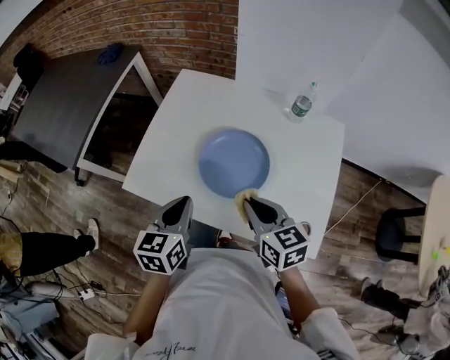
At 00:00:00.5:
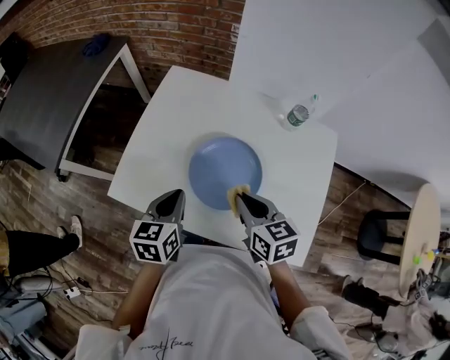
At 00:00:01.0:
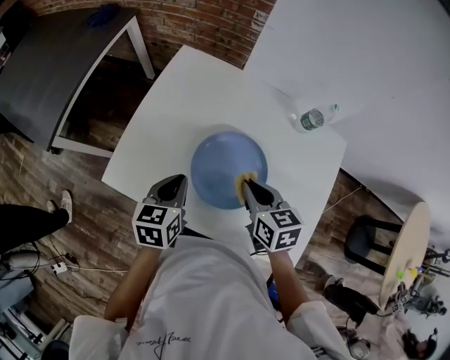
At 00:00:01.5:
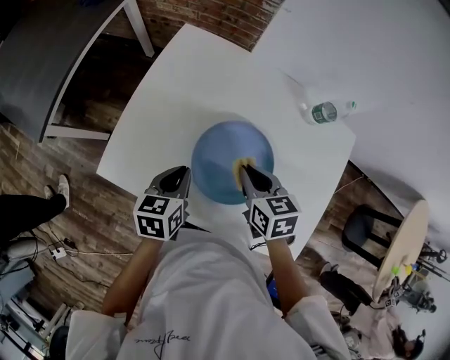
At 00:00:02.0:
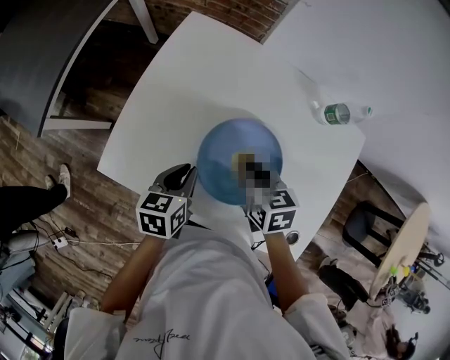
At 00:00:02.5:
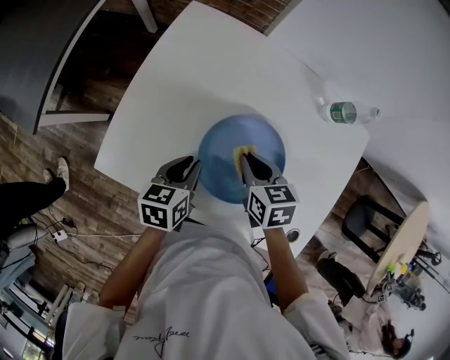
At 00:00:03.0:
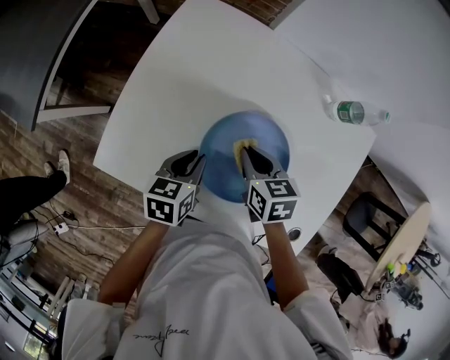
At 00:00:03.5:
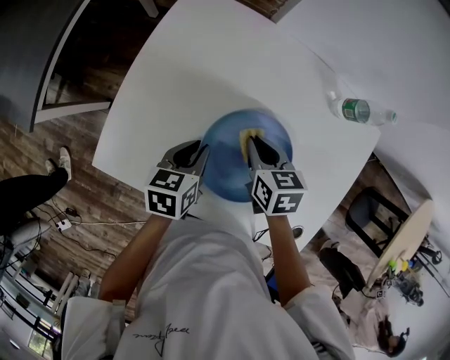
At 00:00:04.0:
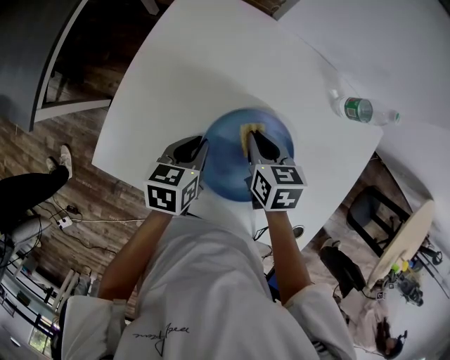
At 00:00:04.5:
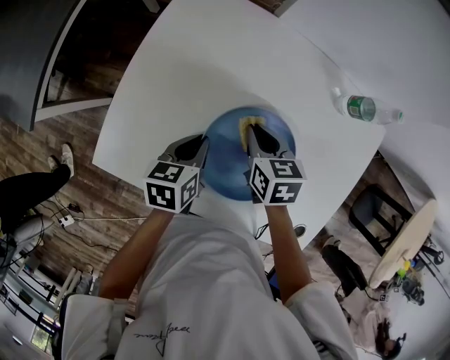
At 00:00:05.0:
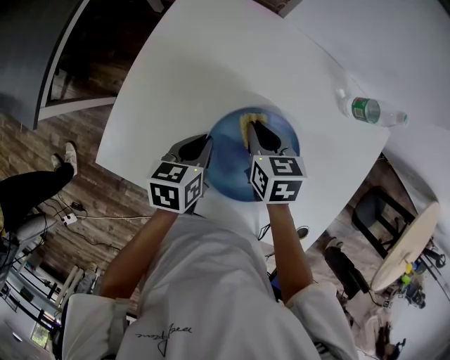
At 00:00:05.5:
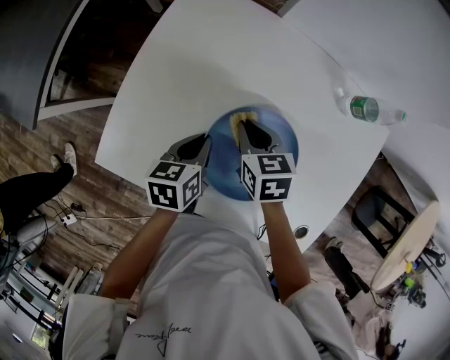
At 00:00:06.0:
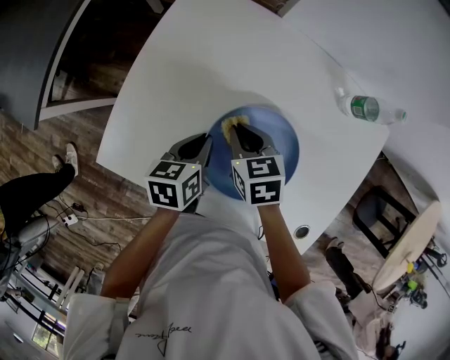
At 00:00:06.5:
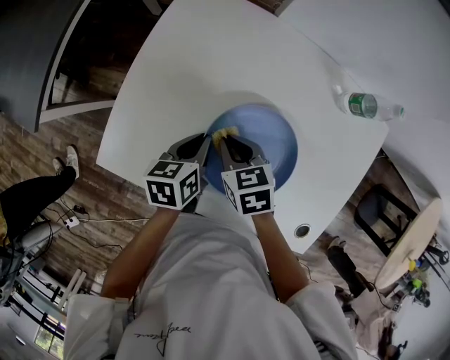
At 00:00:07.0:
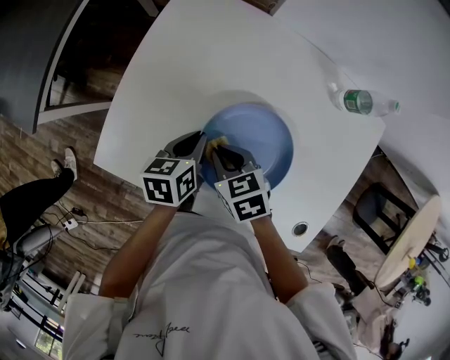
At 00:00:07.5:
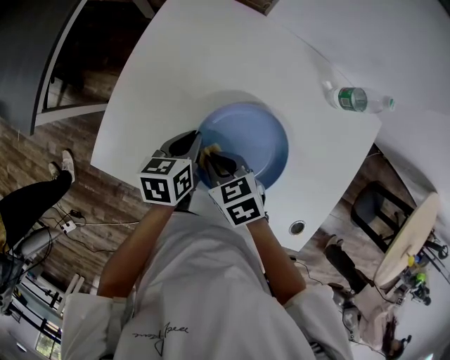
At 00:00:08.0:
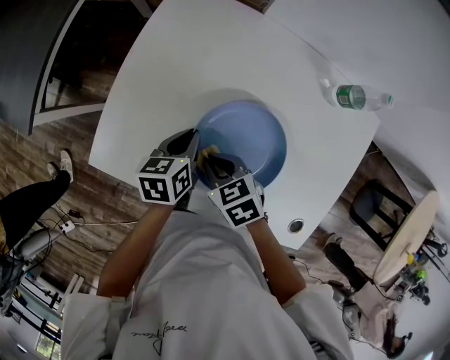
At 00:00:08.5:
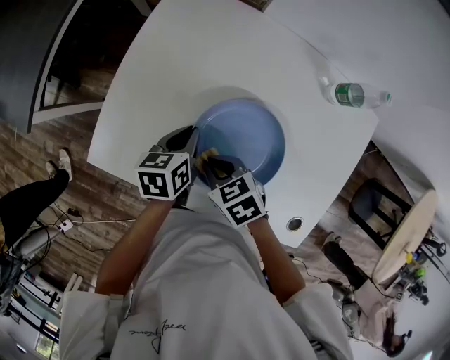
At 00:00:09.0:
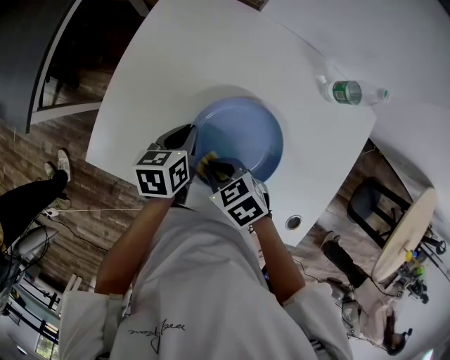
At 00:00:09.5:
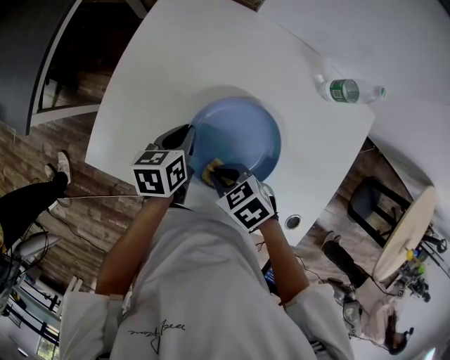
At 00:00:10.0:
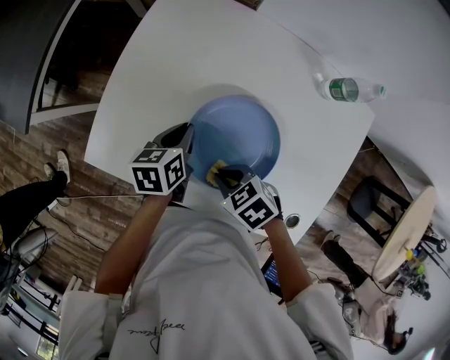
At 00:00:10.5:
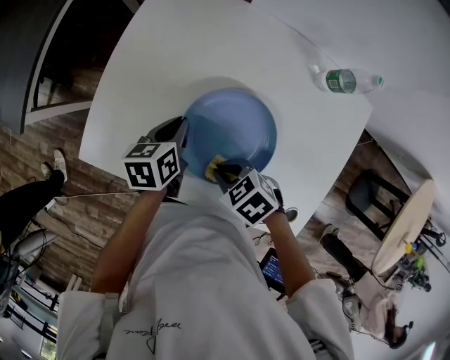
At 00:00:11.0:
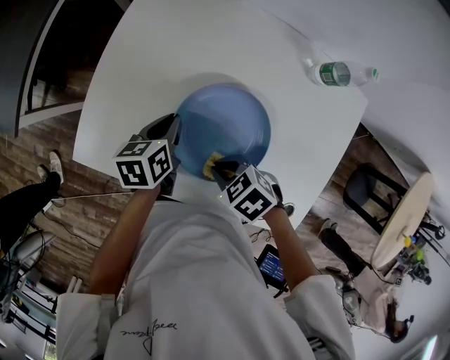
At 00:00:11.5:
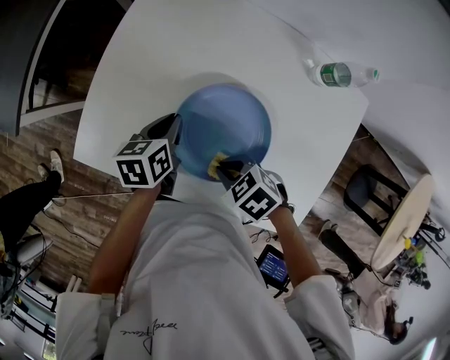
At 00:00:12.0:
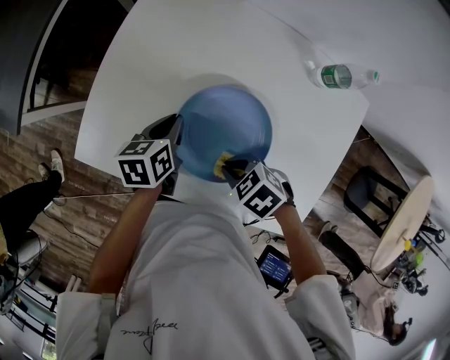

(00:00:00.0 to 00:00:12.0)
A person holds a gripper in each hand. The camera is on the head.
00:00:00.0 - 00:00:02.0: The left gripper goes about 15 cm downward and forward, and rotates roughly 20 degrees; the right gripper goes roughly 20 cm forward and downward.
00:00:02.0 - 00:00:04.0: The grippers both shift forward by about 5 cm.
00:00:04.0 - 00:00:06.0: The right gripper heads to the left, covering approximately 5 cm.
00:00:06.0 - 00:00:08.0: The right gripper shifts some 10 cm backward.
00:00:08.0 - 00:00:10.0: The right gripper shifts about 5 cm backward.
00:00:10.0 - 00:00:12.0: The grippers move only a little.

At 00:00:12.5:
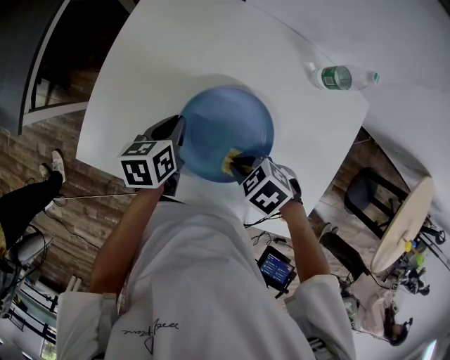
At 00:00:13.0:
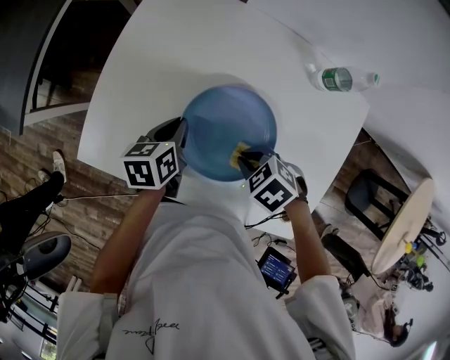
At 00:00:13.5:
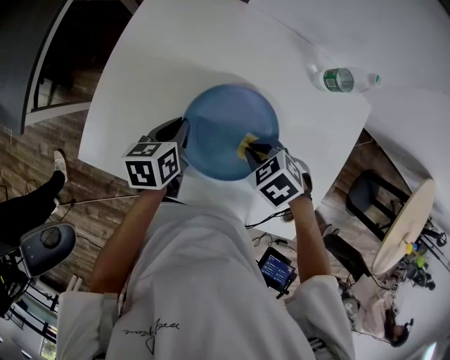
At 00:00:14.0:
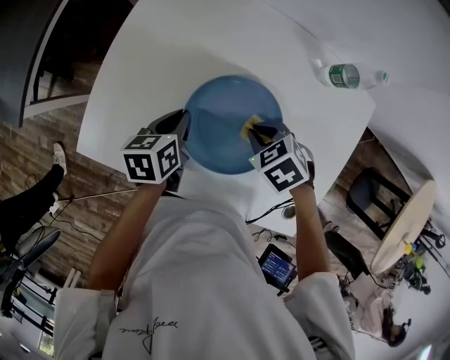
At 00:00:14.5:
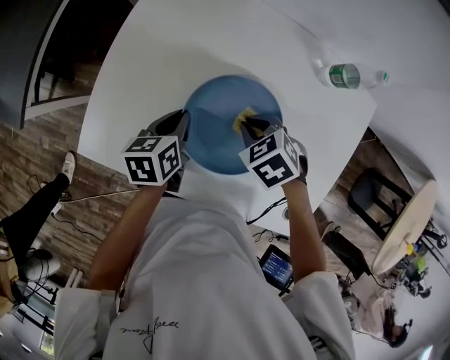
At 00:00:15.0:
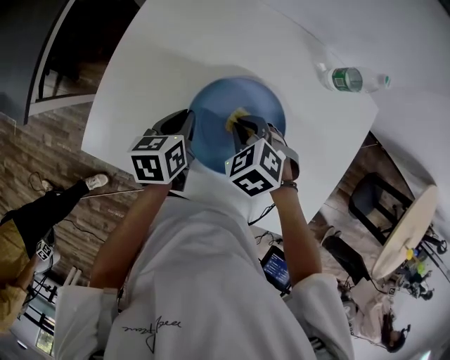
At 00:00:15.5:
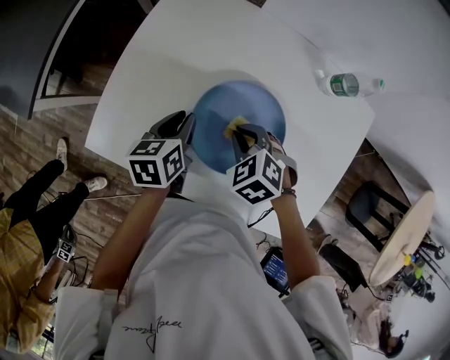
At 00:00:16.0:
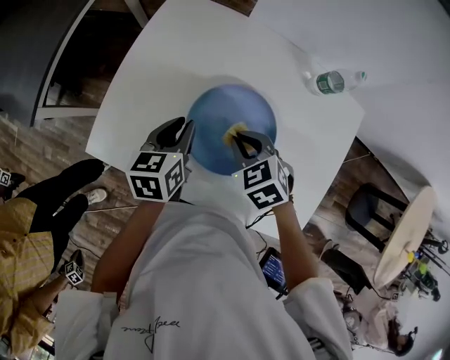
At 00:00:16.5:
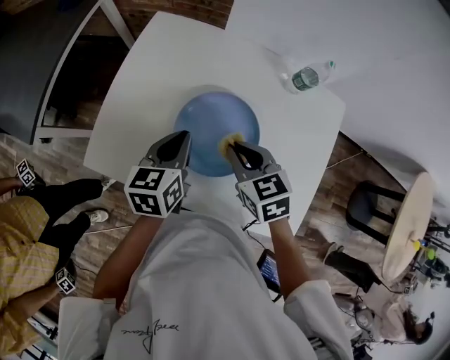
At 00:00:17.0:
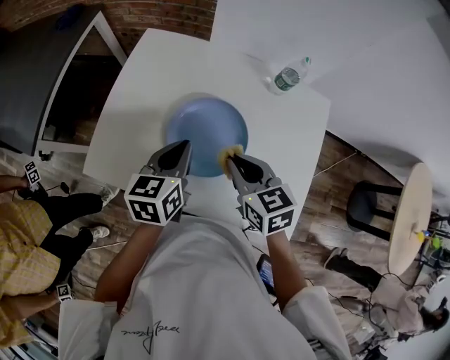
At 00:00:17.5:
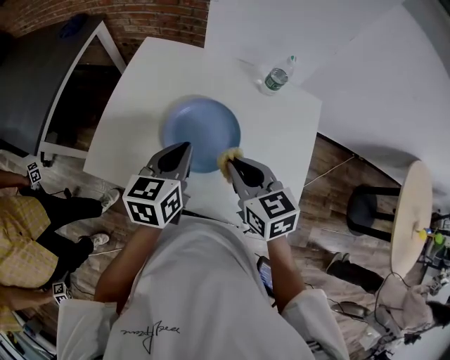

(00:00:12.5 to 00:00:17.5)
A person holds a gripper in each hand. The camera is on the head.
00:00:12.5 - 00:00:15.0: The right gripper moves approximately 10 cm, and changes its angle by some 20 degrees.
00:00:15.0 - 00:00:17.5: Both grippers travel together upward, backward and to the right, about 20 cm. The left gripper rotates about 30 degrees; the right gripper angles its fingers upward, by some 40 degrees.

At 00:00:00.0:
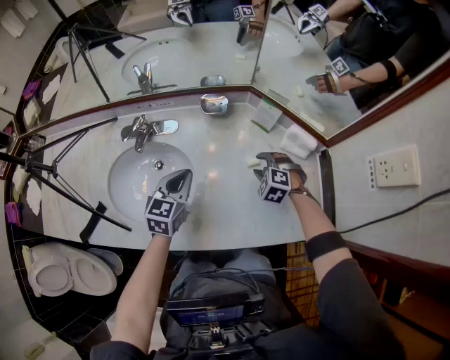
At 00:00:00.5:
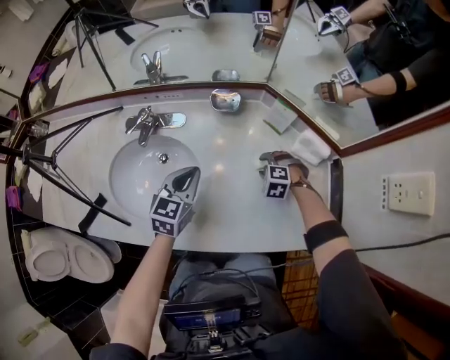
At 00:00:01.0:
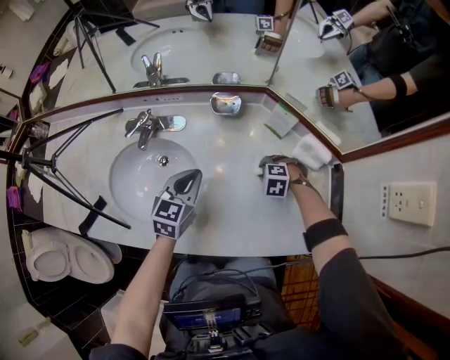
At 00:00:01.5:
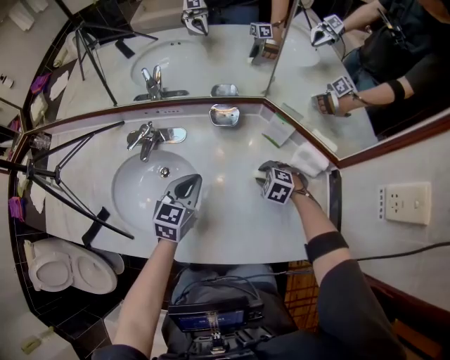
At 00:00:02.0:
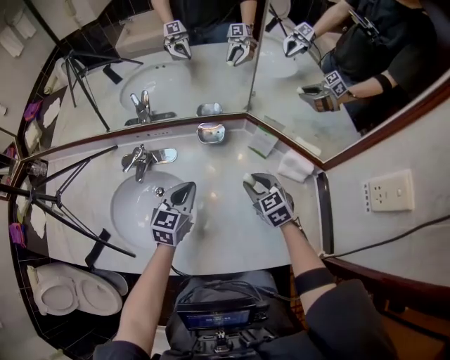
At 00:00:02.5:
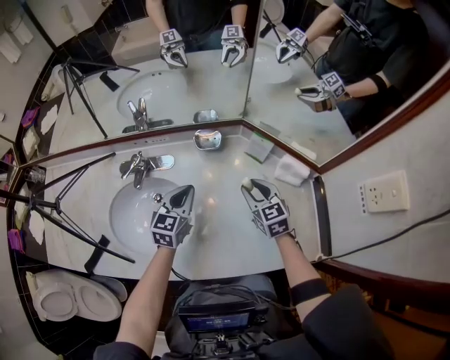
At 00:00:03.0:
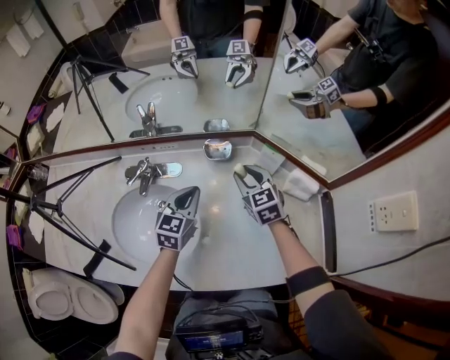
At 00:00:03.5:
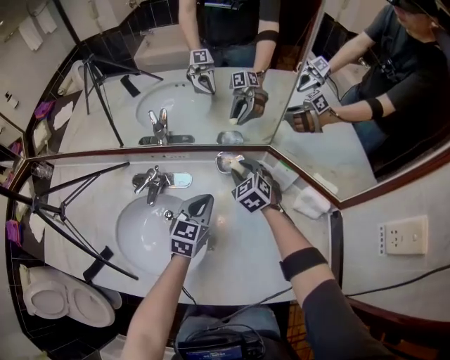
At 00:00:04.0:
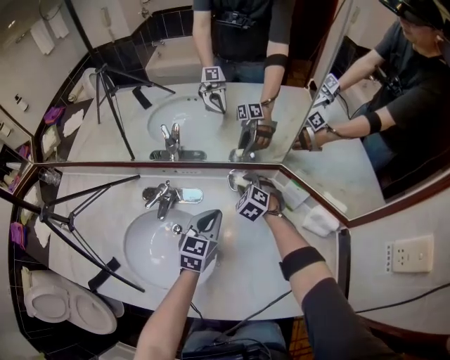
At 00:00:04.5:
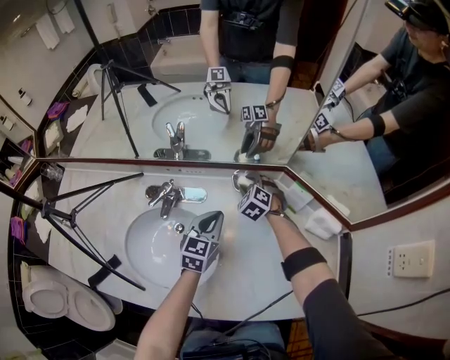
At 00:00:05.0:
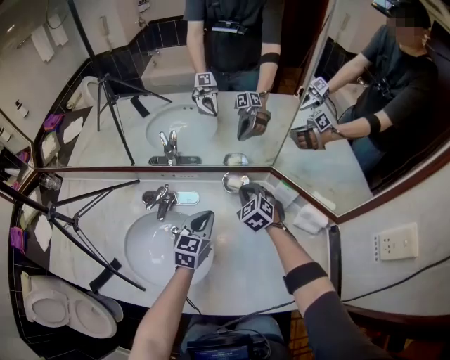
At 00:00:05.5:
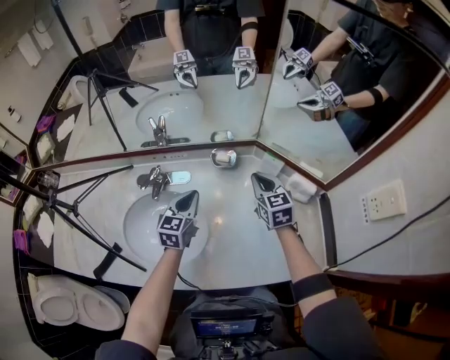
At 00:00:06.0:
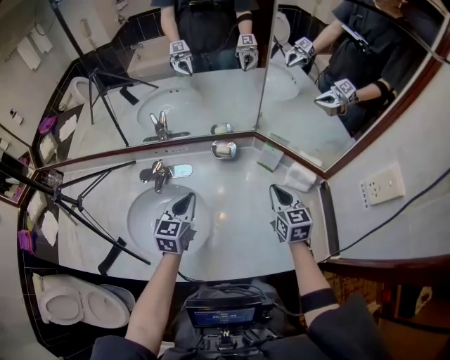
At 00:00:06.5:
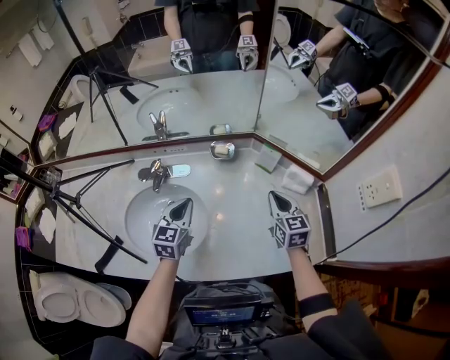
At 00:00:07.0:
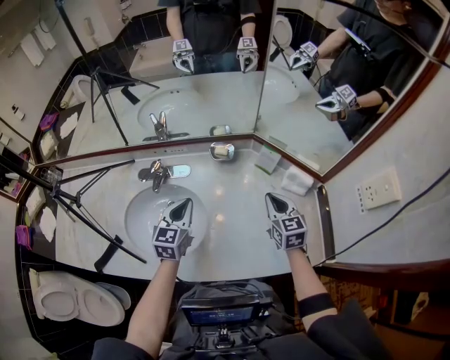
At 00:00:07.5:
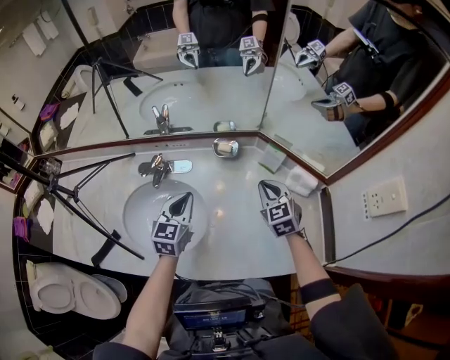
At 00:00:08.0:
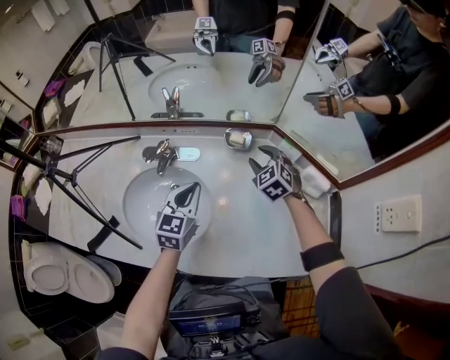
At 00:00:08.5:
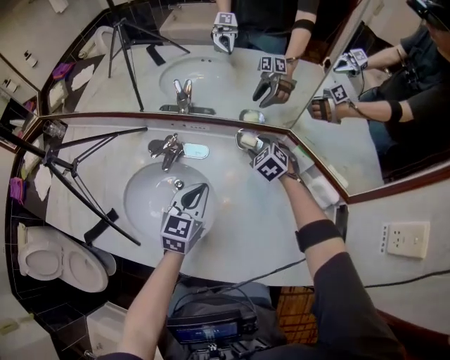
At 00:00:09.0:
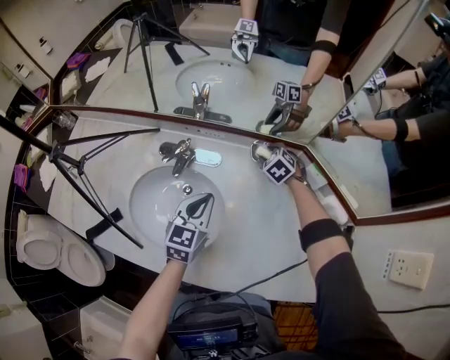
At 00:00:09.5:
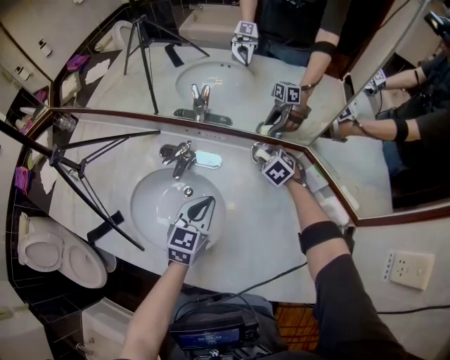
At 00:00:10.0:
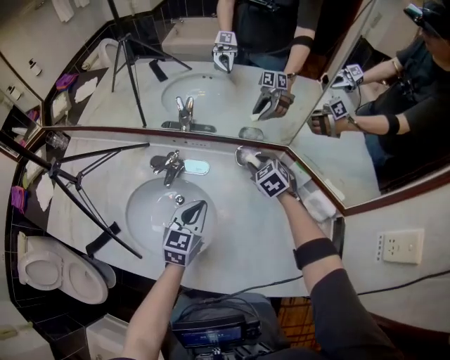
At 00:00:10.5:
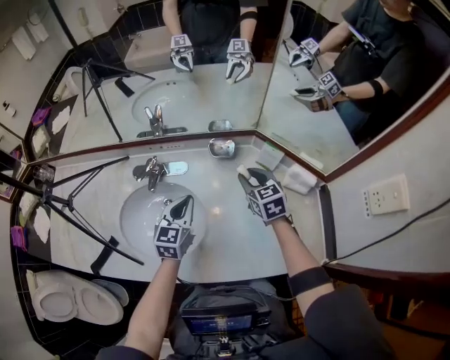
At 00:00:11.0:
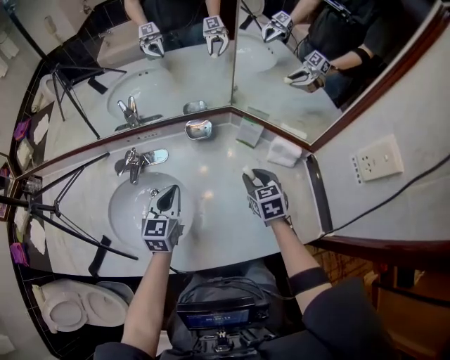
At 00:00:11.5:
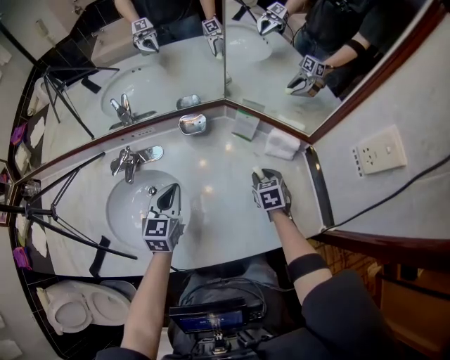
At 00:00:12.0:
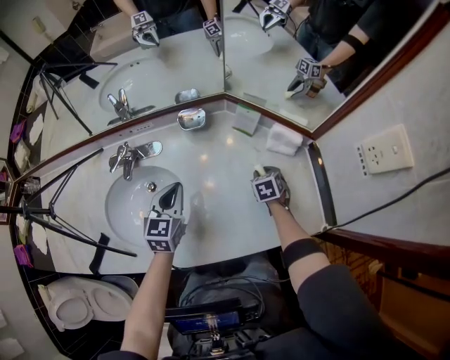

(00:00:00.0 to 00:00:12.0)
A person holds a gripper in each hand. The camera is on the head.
00:00:00.0 - 00:00:02.0: The left gripper ends up roughly 5 cm from where it was, while the right gripper shifts some 10 cm upward, and rotates around the line of its fingers by some 40 degrees, clockwise from behind.
00:00:02.0 - 00:00:04.0: The right gripper shifts approximately 25 cm forward and to the left, and changes its angle by roughly 30 degrees, while the left gripper heads forward, covering approximately 5 cm.
00:00:04.0 - 00:00:06.0: The right gripper moves backward, to the right and upward, roughly 30 cm, rotates around the line of its fingers by roughly 50 degrees, clockwise from behind, and closes. Meanwhile the left gripper is displaced backward and upward by approximately 10 cm.
00:00:06.0 - 00:00:08.0: The right gripper heads forward, to the left and downward, covering roughly 15 cm, twists about 40 degrees counterclockwise, seen from behind, and opens.
00:00:08.0 - 00:00:10.0: The right gripper moves forward, roughly 5 cm.
00:00:10.0 - 00:00:12.0: The right gripper travels to the right, backward and downward by roughly 35 cm, and rotates around the line of its fingers by some 40 degrees, clockwise from behind. The left gripper is displaced to the right by approximately 5 cm.
